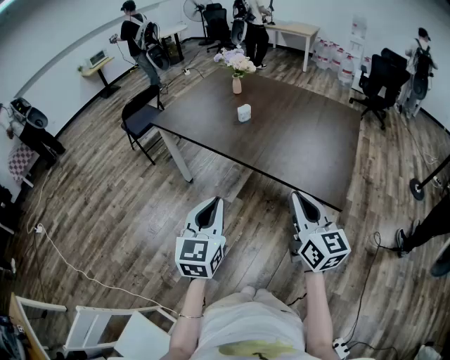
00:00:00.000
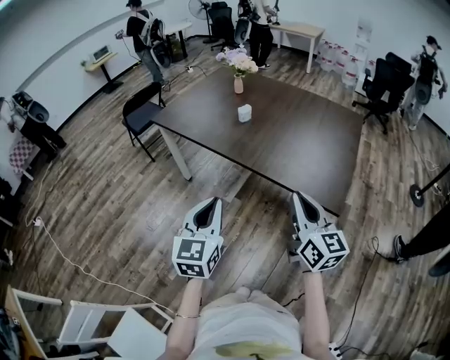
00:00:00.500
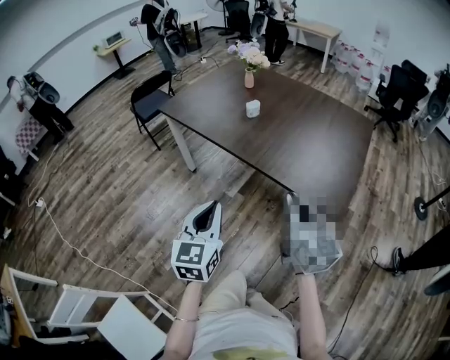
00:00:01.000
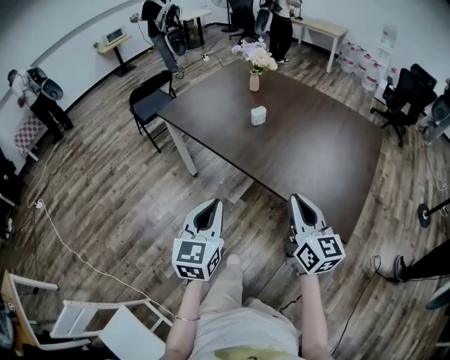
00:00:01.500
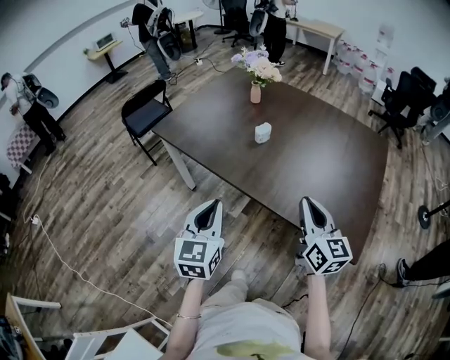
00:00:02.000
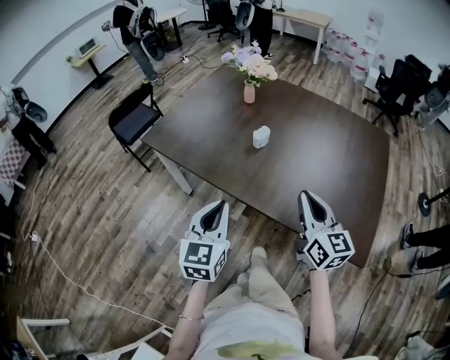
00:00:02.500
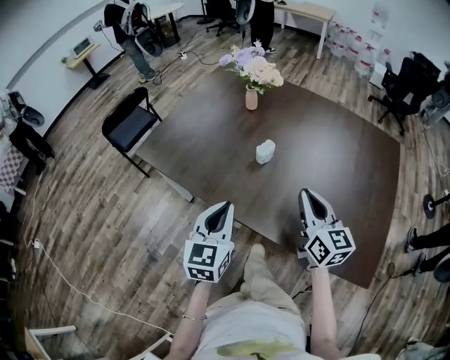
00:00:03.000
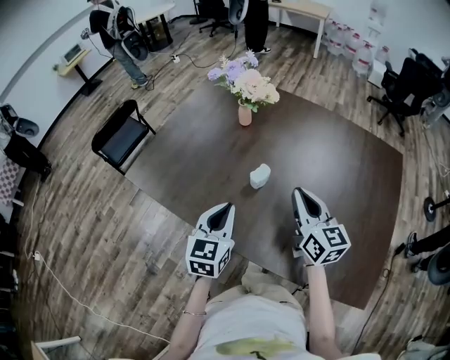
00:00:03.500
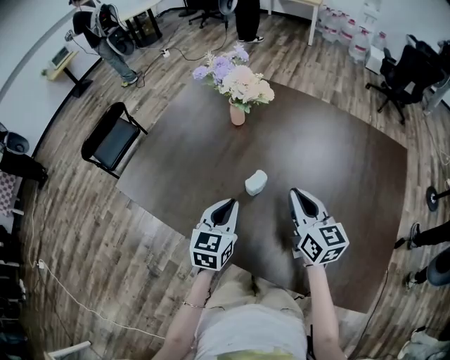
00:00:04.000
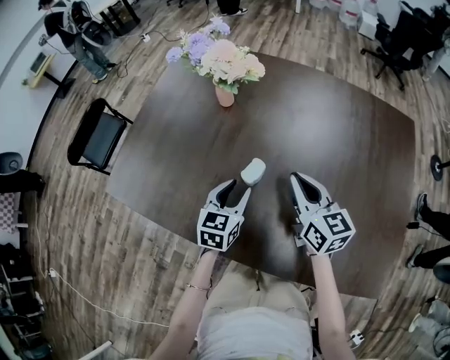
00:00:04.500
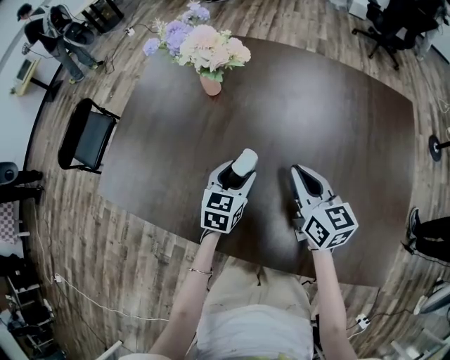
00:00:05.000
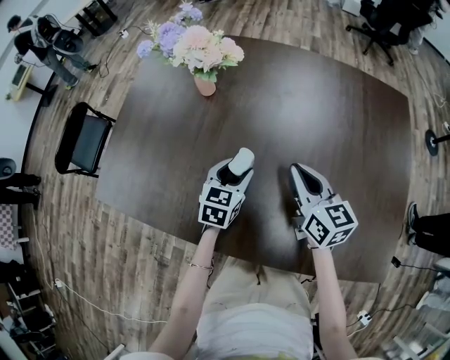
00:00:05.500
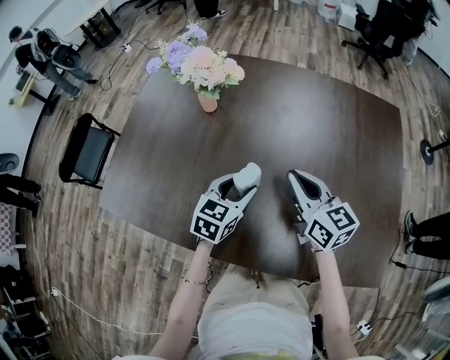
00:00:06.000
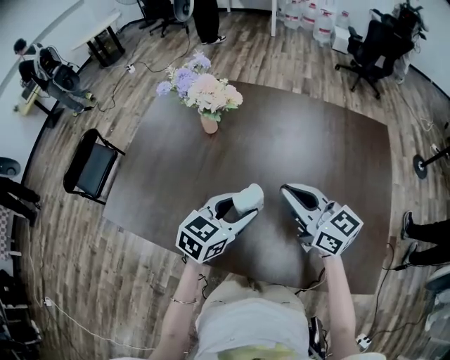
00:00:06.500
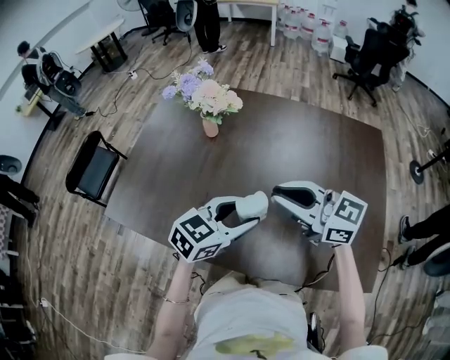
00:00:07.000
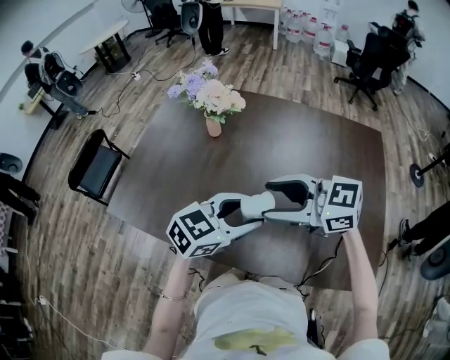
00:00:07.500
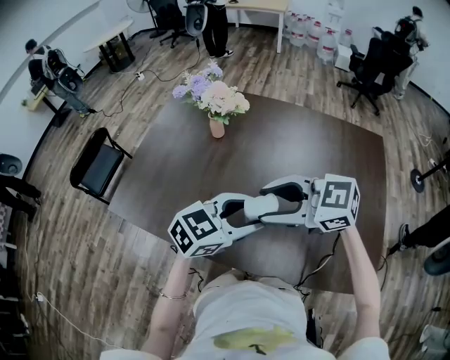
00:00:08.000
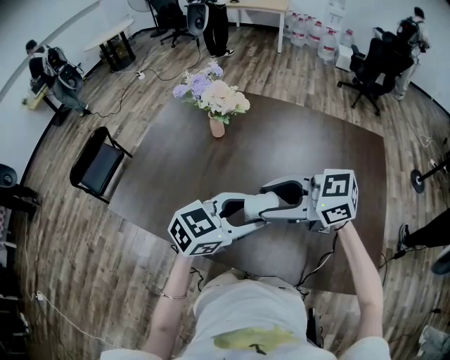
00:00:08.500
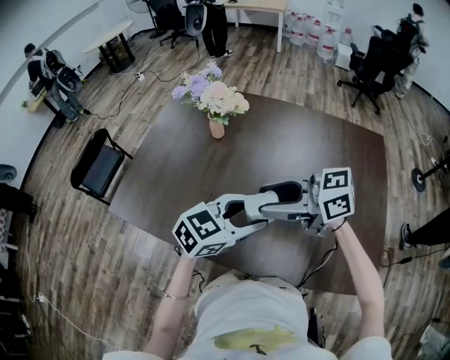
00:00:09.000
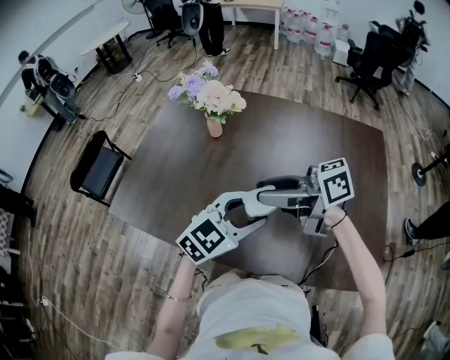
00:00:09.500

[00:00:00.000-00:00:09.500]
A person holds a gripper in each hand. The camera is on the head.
00:00:00.000 to 00:00:02.000: Both grippers move forward, some 20 cm.
00:00:02.000 to 00:00:04.000: Both grippers move forward, roughly 30 cm.
00:00:04.000 to 00:00:05.500: The right gripper is displaced downward by about 5 cm; the left gripper shifts some 15 cm downward, forward and to the right, swivels about 20 degrees, and opens up.
00:00:05.500 to 00:00:07.500: The grippers both shift upward by about 20 cm. The left gripper turns by some 40 degrees, while the right gripper turns by about 60 degrees, and opens its fingers.
00:00:07.500 to 00:00:09.500: The right gripper turns by about 40 degrees.

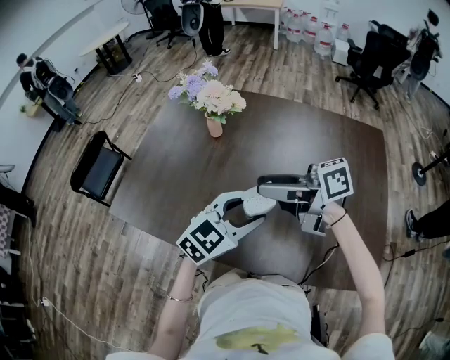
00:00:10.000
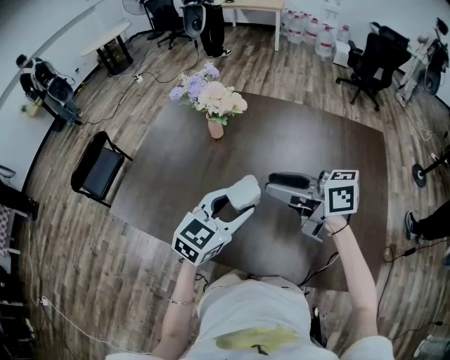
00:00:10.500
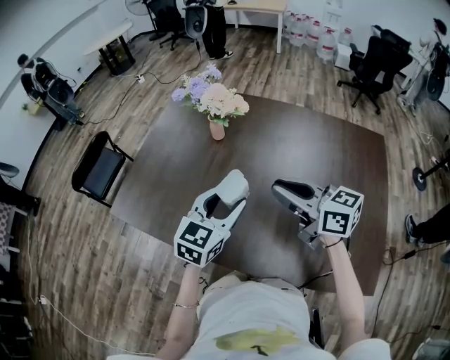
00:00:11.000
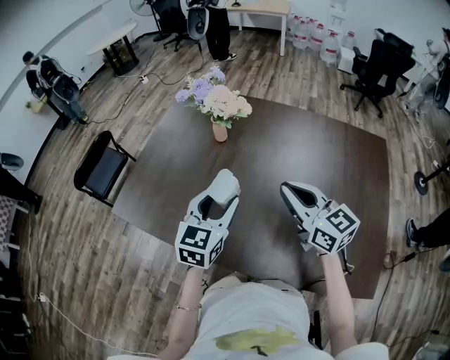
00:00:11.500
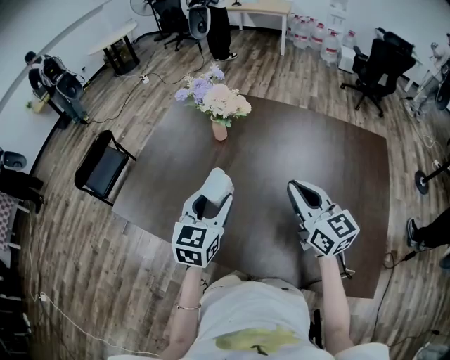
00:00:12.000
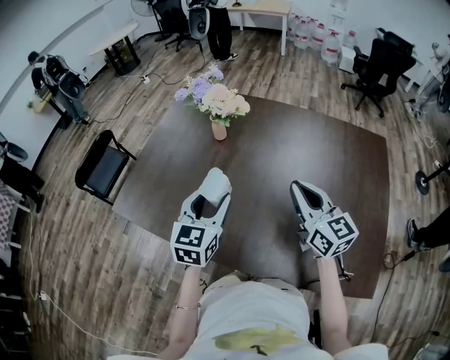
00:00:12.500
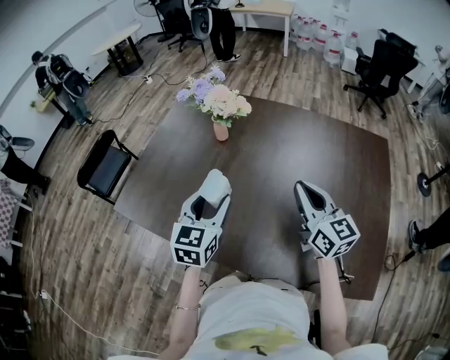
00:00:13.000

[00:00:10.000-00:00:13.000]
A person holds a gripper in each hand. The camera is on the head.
00:00:10.000 to 00:00:11.500: The left gripper moves some 10 cm, and rotates about 40 degrees; the right gripper changes place by some 5 cm, swivels some 50 degrees, and closes its fingers.
00:00:11.500 to 00:00:13.000: The right gripper travels to the right by roughly 5 cm.

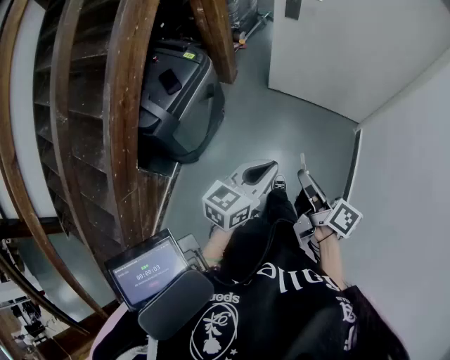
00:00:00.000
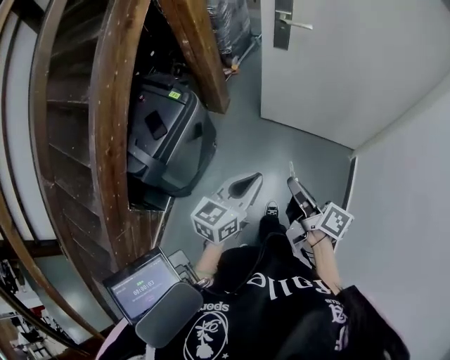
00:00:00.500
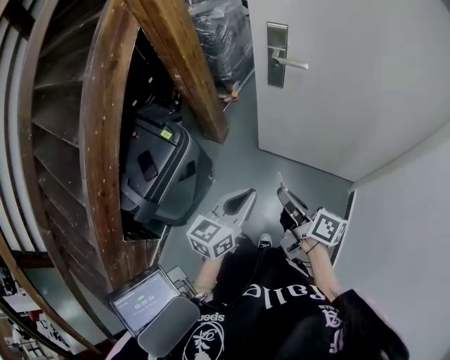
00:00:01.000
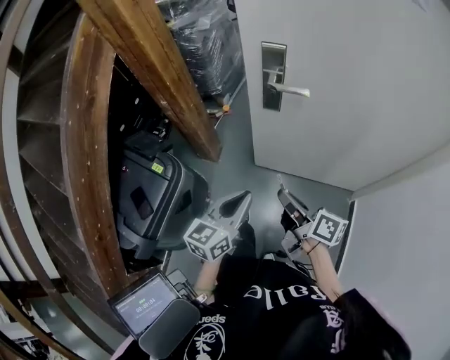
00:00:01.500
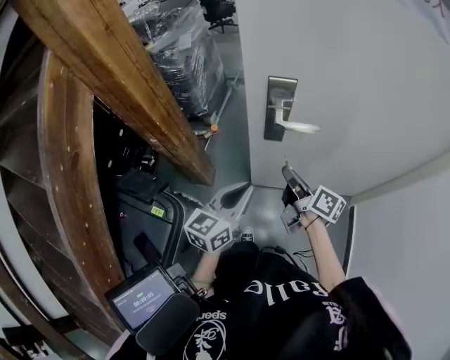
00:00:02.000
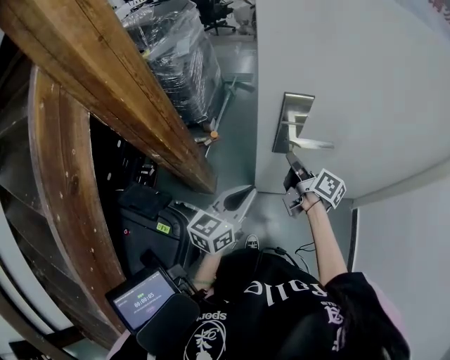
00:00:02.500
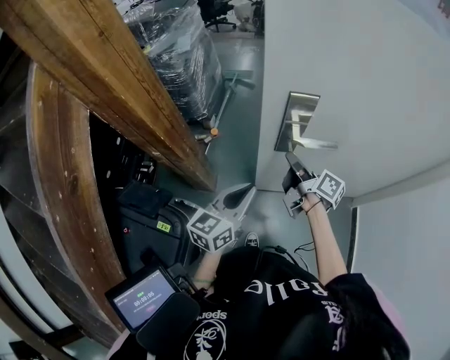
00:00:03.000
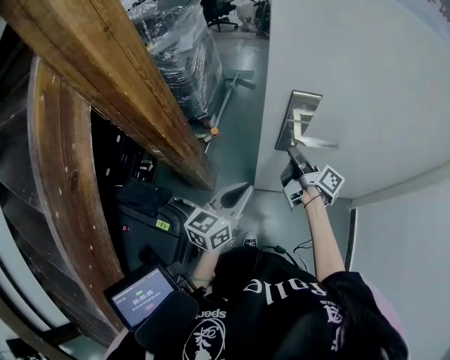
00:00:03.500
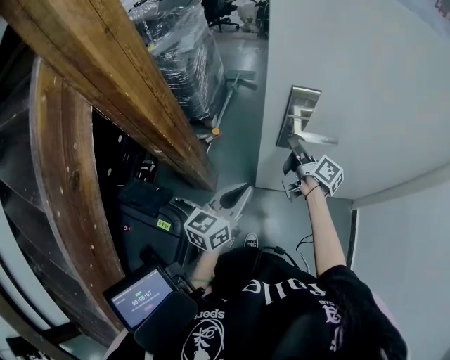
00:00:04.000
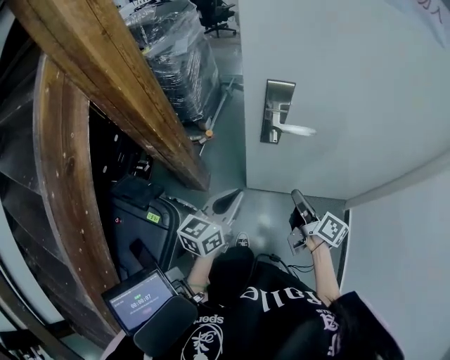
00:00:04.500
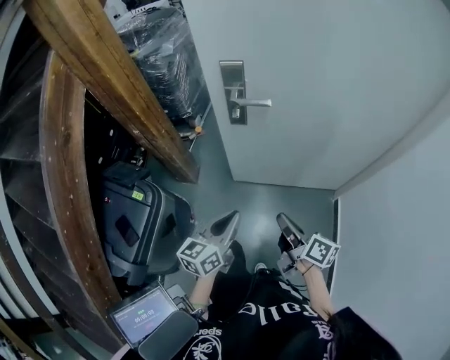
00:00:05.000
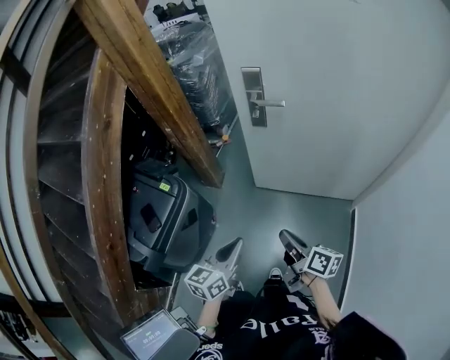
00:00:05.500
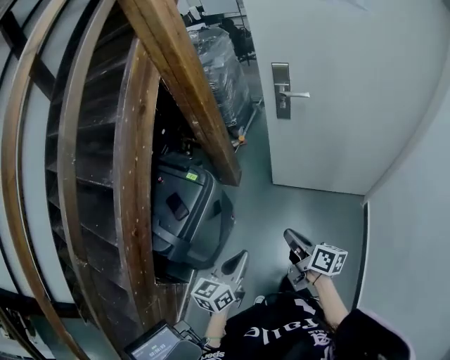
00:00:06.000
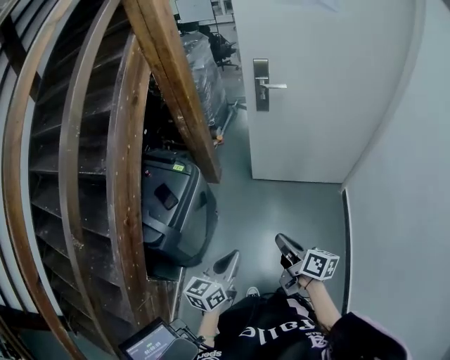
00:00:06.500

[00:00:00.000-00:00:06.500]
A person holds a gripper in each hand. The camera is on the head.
00:00:00.000 to 00:00:02.000: The pair of grippers is taken forward, approximately 70 cm.
00:00:02.000 to 00:00:04.500: The right gripper reaches approximately 15 cm forward, then returns.
00:00:04.500 to 00:00:06.500: The two grippers travel together, backward, some 60 cm.

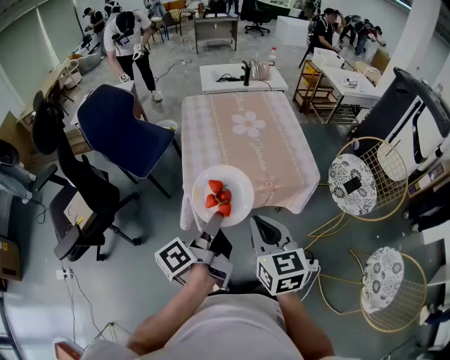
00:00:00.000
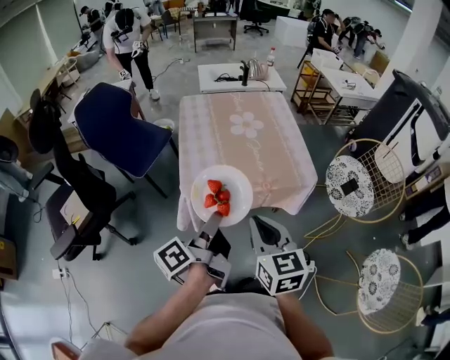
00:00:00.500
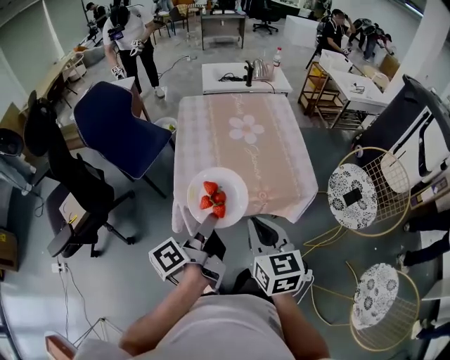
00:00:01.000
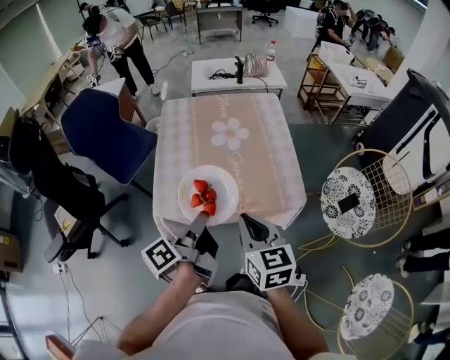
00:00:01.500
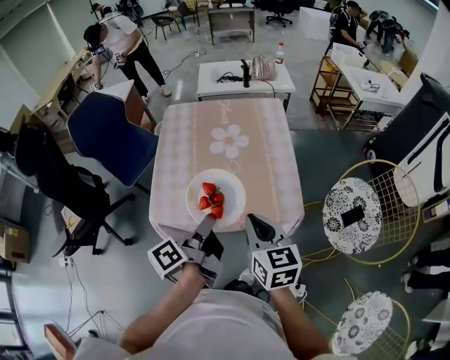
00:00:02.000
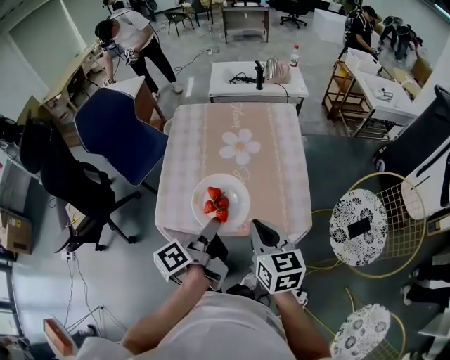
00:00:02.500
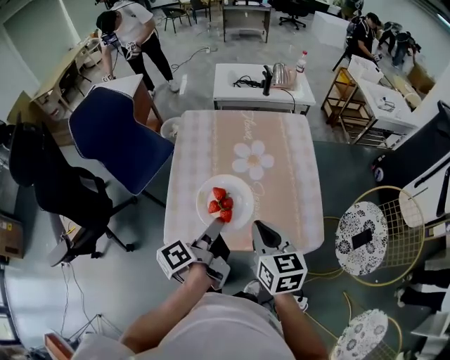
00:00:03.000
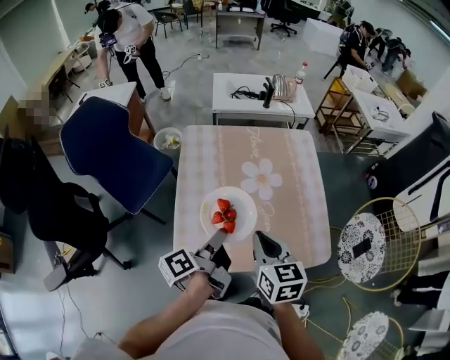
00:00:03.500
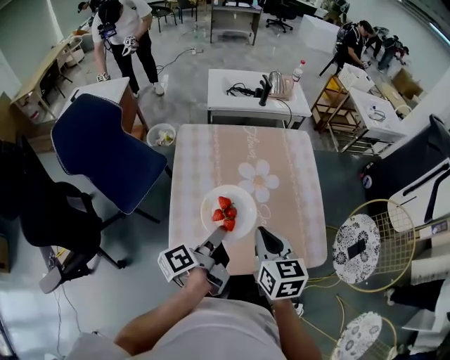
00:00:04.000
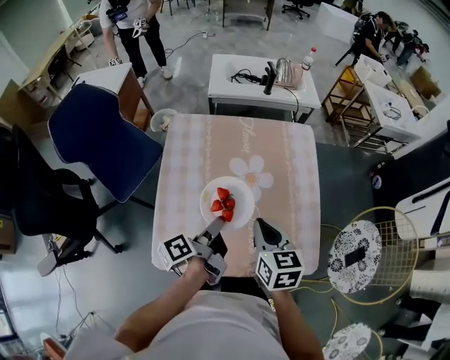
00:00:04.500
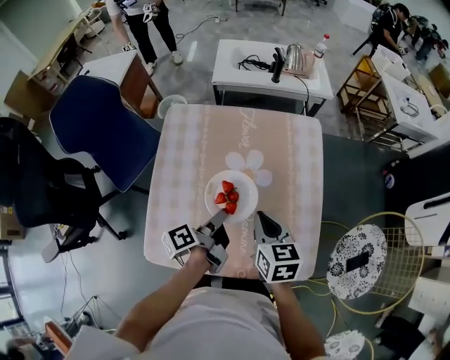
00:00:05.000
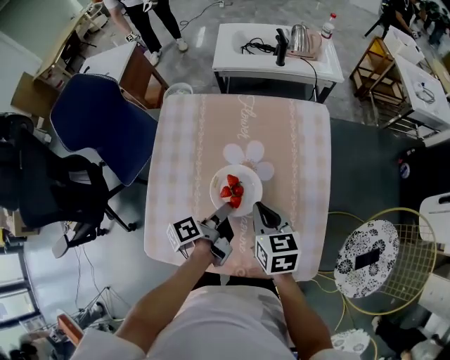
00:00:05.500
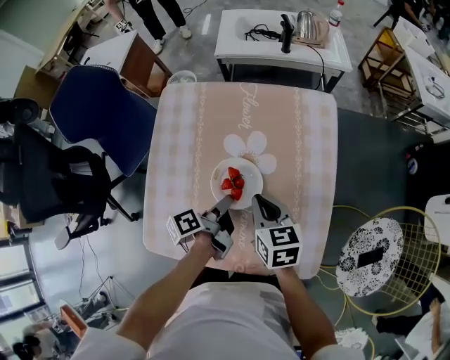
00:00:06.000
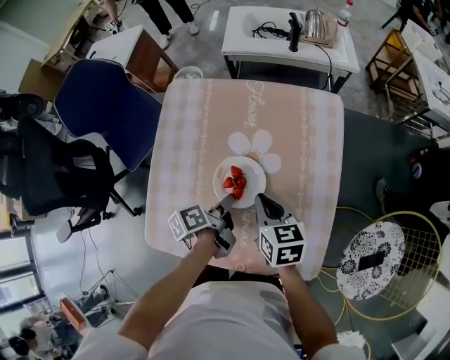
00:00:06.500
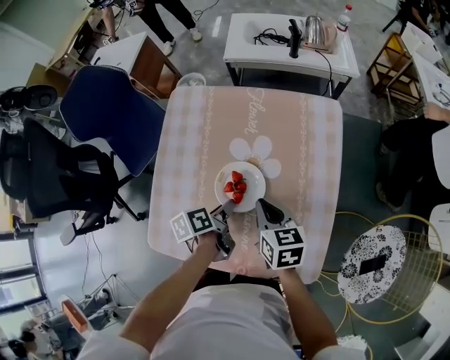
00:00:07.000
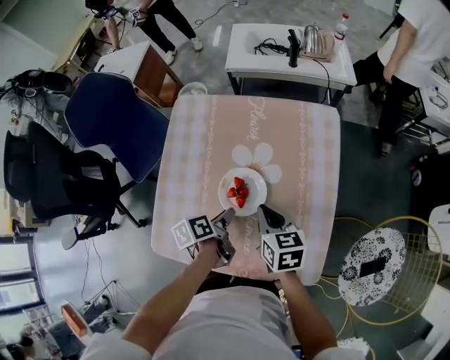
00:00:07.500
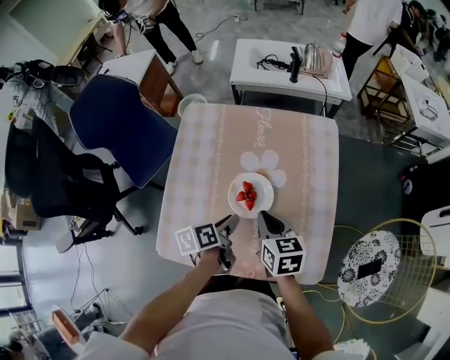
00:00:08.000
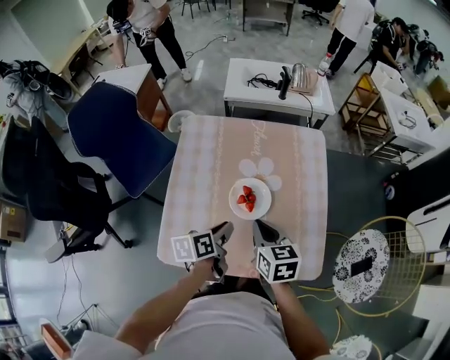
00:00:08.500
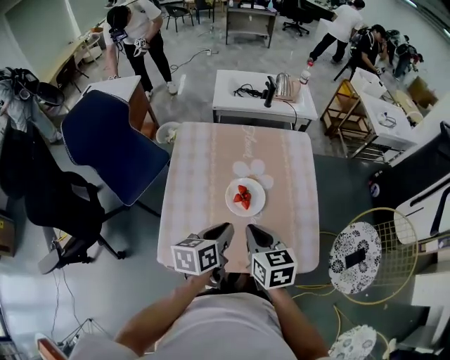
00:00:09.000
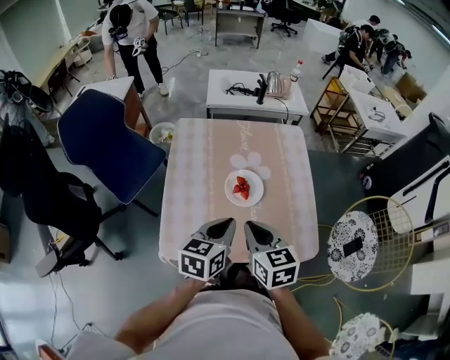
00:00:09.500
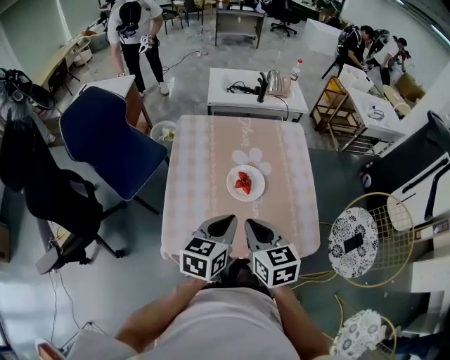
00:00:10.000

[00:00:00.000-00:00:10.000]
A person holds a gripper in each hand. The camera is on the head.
00:00:00.000 to 00:00:02.000: The right gripper ends up about 25 cm from where it was.
00:00:02.000 to 00:00:04.000: The right gripper changes place by about 20 cm.
00:00:04.000 to 00:00:06.000: The right gripper moves some 20 cm, and changes its angle by approximately 20 degrees.
00:00:08.000 to 00:00:10.000: The right gripper shifts by roughly 20 cm.
